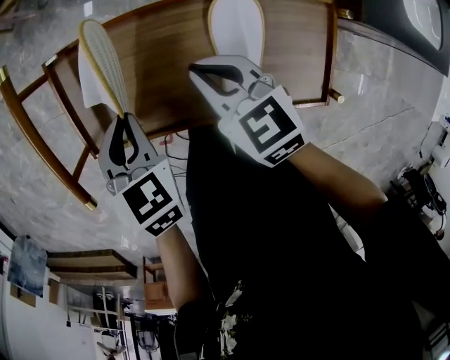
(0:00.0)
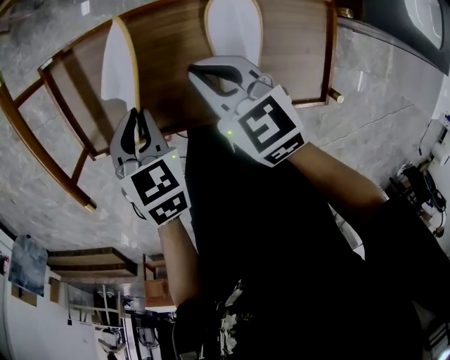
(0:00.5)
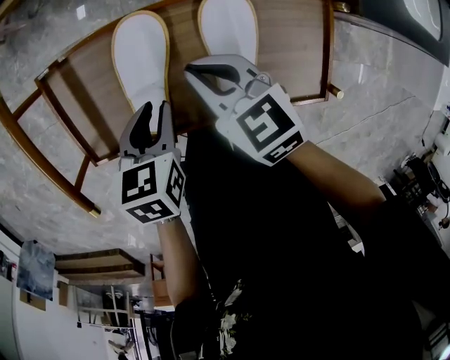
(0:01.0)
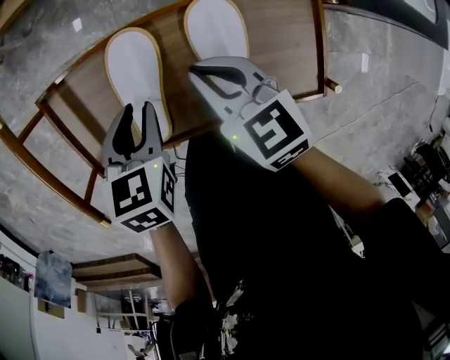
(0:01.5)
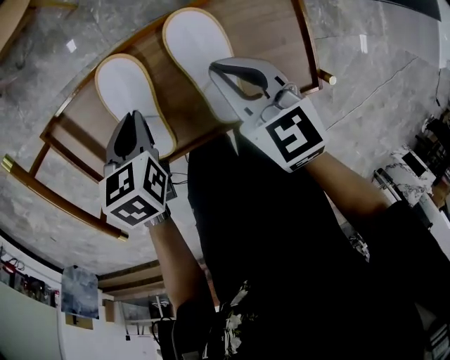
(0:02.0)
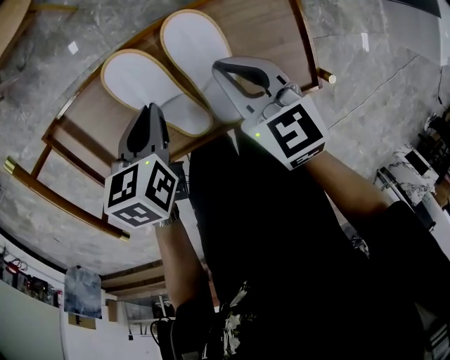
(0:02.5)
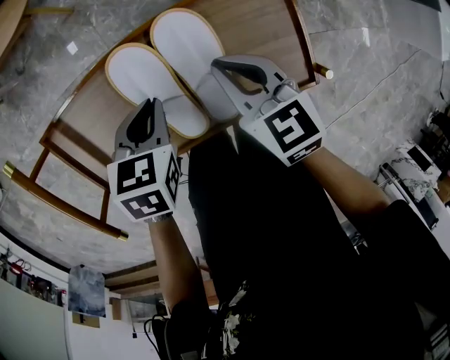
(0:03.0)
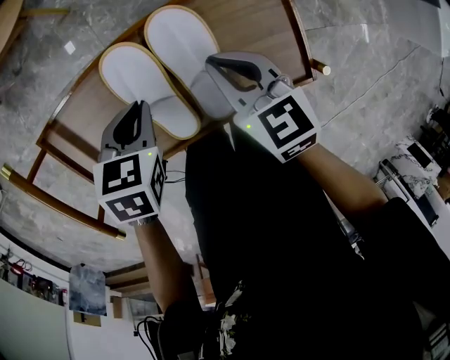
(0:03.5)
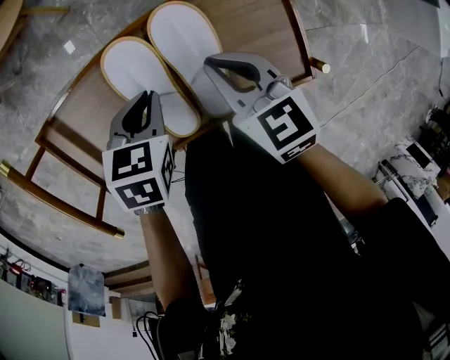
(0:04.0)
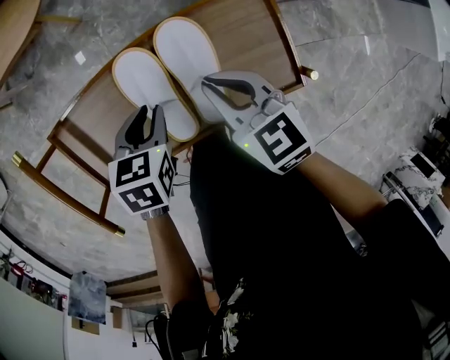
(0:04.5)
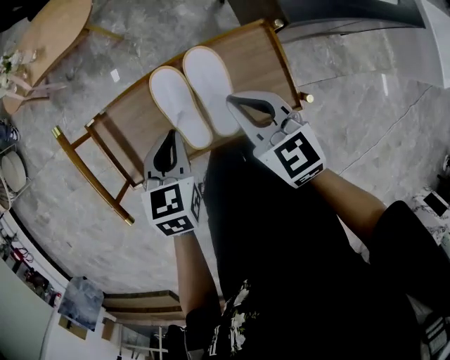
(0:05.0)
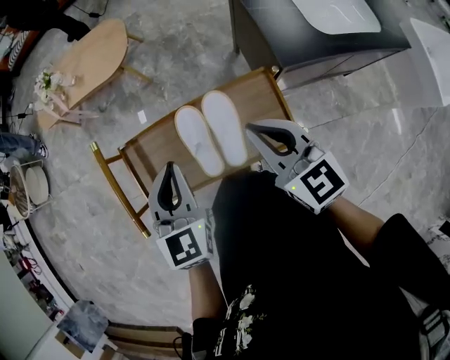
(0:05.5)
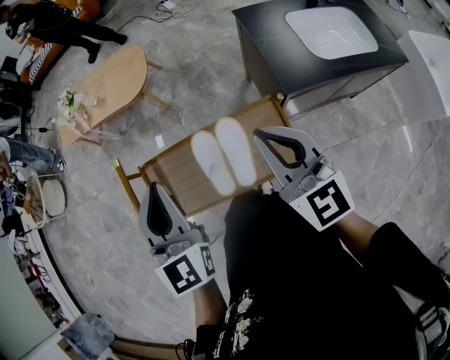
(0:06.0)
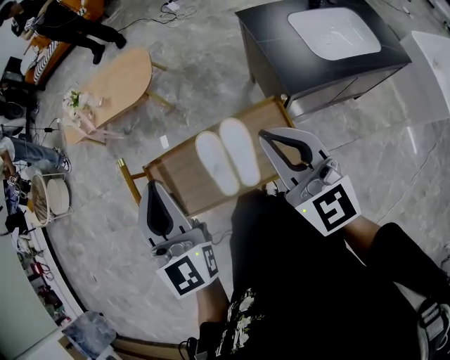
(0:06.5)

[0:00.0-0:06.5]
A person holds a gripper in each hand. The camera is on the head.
0:00.0 to 0:02.0: The left gripper changes place by about 10 cm, turns by roughly 20 degrees, and opens, then closes once more. The right gripper moves roughly 10 cm.
0:02.0 to 0:04.5: The left gripper shifts approximately 5 cm to the right.
0:04.5 to 0:06.5: The two grippers go approximately 35 cm upward. The left gripper tilts its fingers approximately 60 degrees upward, and closes its fingers. Meanwhile the right gripper angles its fingers upward, by about 30 degrees.

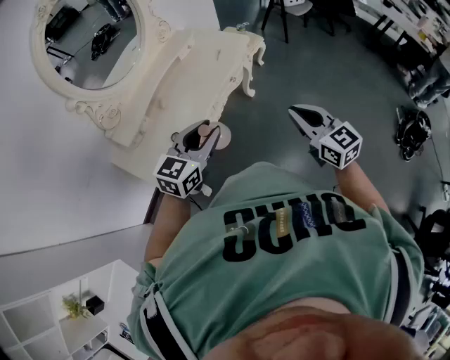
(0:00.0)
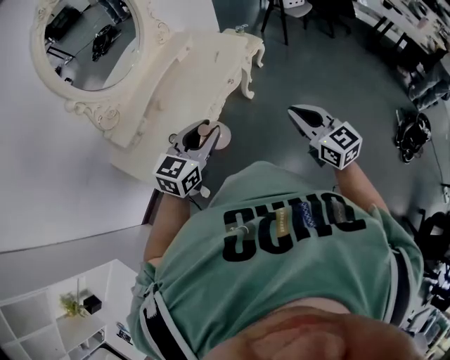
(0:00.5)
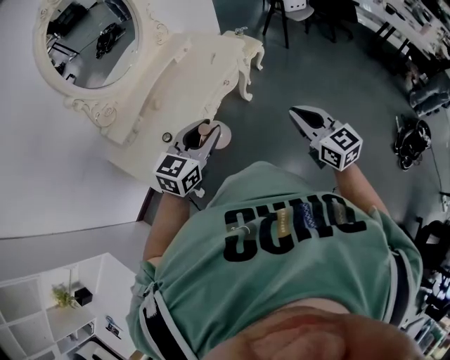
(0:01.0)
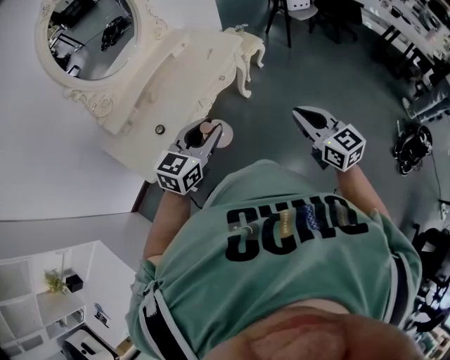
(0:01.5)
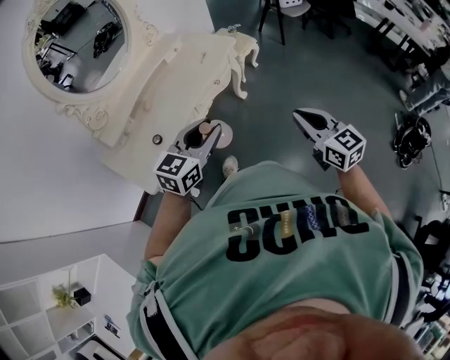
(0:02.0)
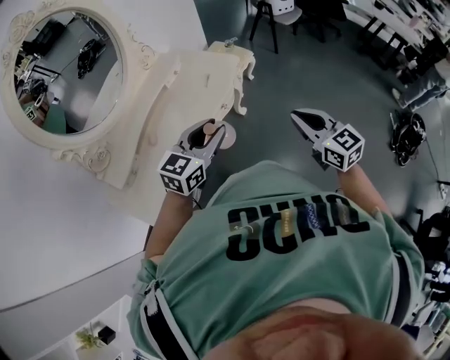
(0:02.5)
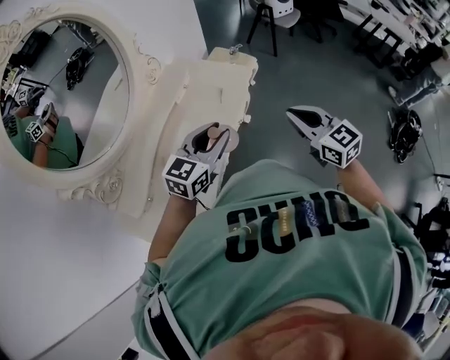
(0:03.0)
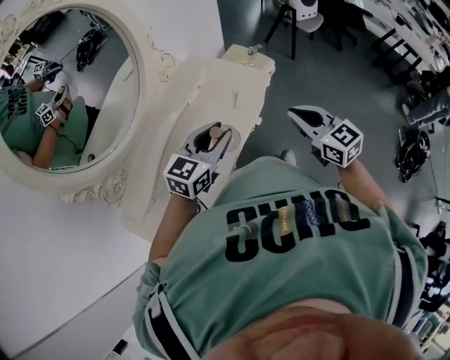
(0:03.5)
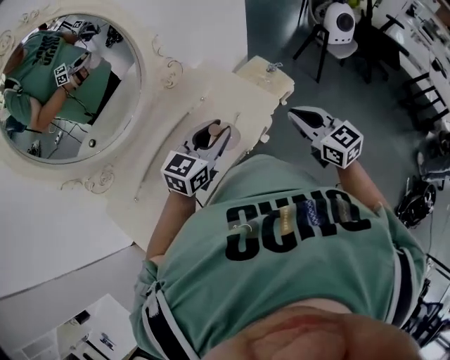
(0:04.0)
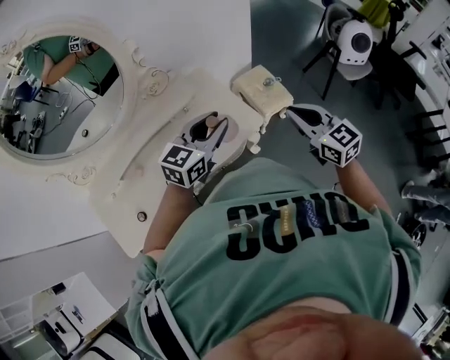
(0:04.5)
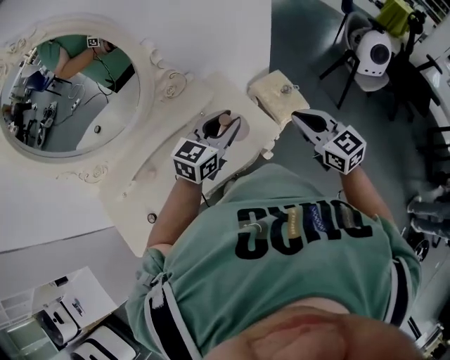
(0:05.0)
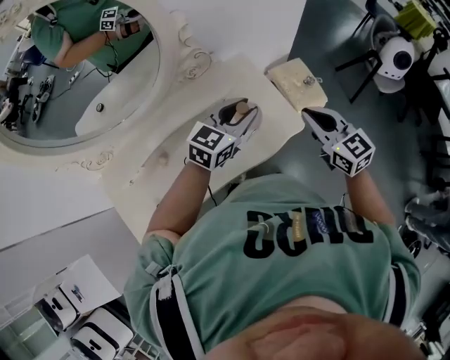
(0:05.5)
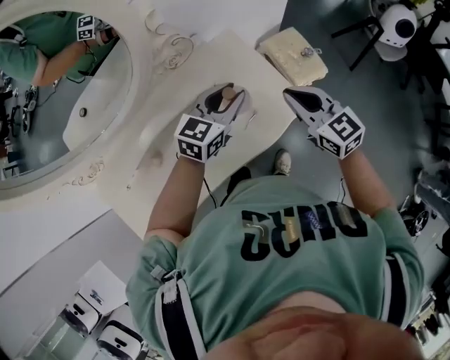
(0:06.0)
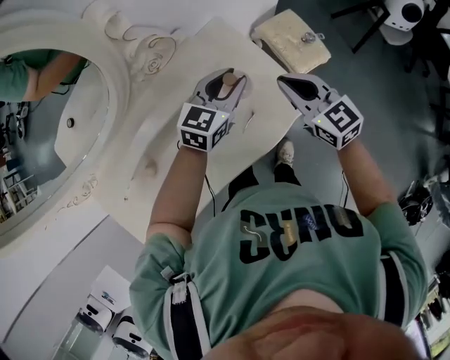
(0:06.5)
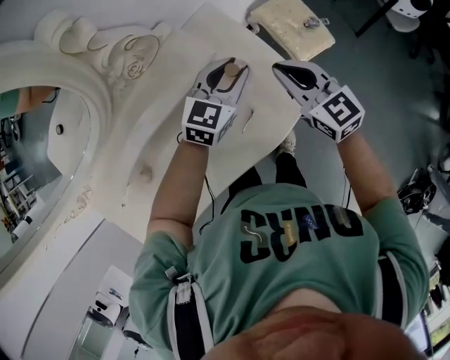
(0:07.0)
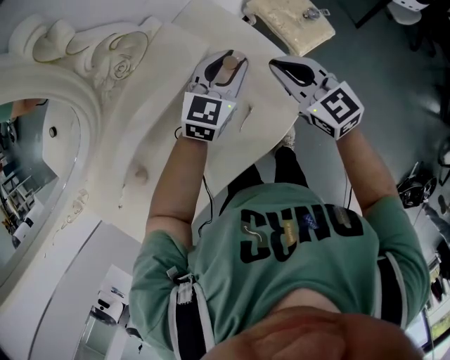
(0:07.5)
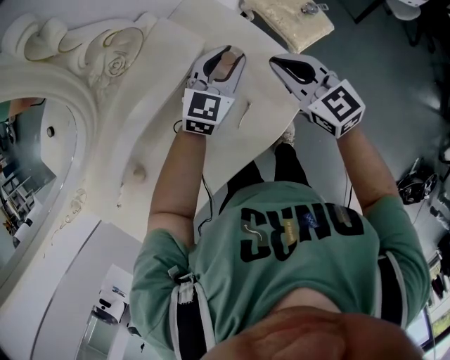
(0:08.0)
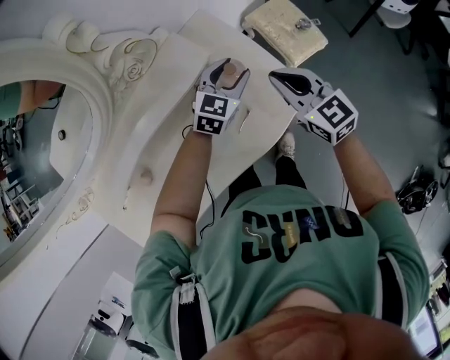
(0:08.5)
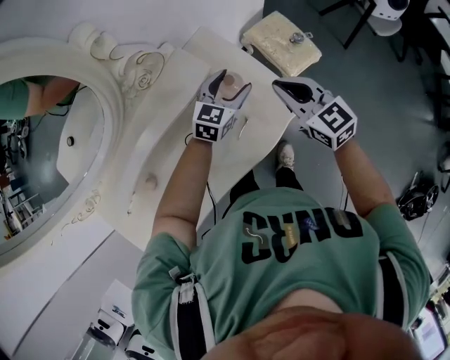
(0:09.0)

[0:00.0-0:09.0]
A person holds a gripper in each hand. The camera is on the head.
0:00.0 to 0:02.0: The grippers both shift to the right by approximately 10 cm.
0:02.0 to 0:04.5: The pair of grippers is taken about 60 cm. The right gripper turns by some 20 degrees.
0:04.5 to 0:07.0: The right gripper goes some 35 cm downward, forward and to the left. The left gripper shifts about 35 cm downward and forward.
0:07.0 to 0:09.0: The right gripper changes place by some 5 cm. Meanwhile the left gripper opens up.

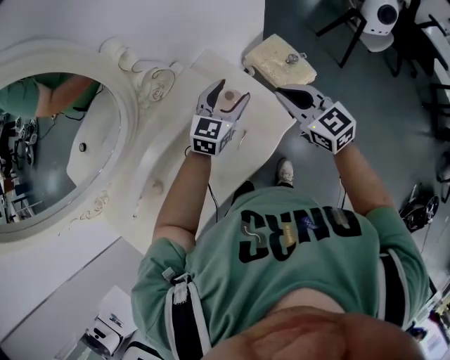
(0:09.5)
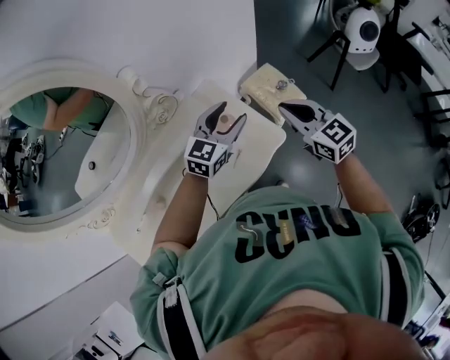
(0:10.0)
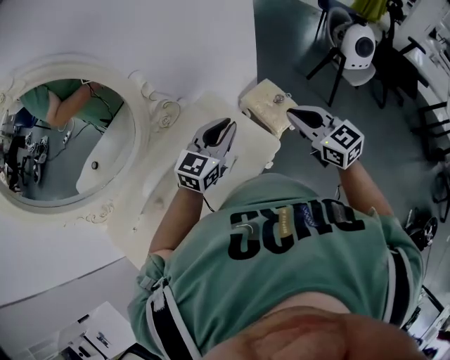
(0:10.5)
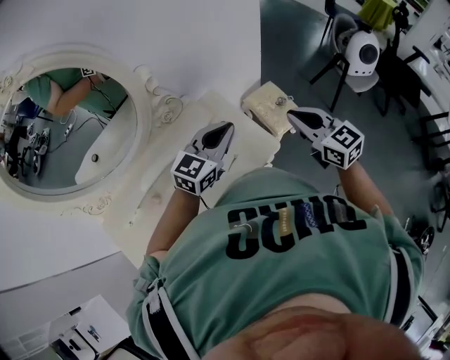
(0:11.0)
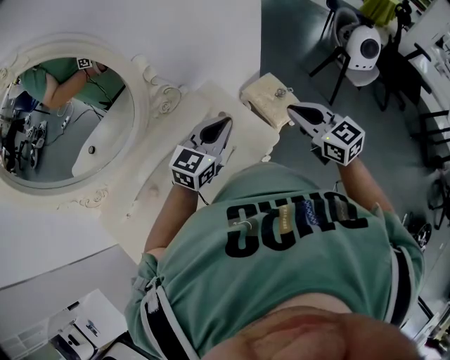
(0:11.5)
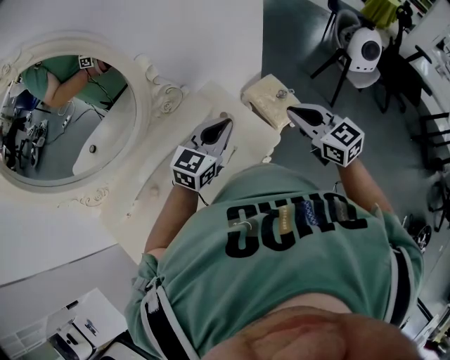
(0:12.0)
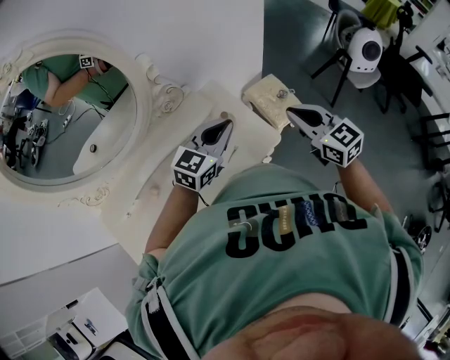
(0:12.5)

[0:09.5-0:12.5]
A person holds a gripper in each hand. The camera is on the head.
0:09.5 to 0:11.0: The left gripper goes about 20 cm upward and backward, and closes its fingers. Meanwhile the right gripper heads upward, to the right and backward, covering approximately 15 cm.
0:11.0 to 0:12.5: The grippers move only a little.

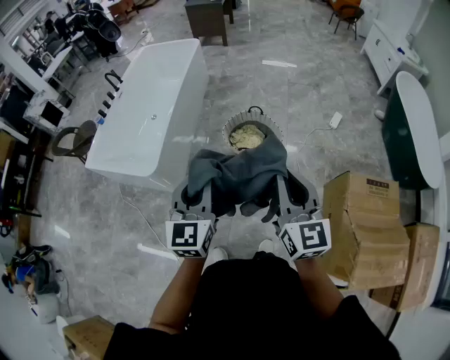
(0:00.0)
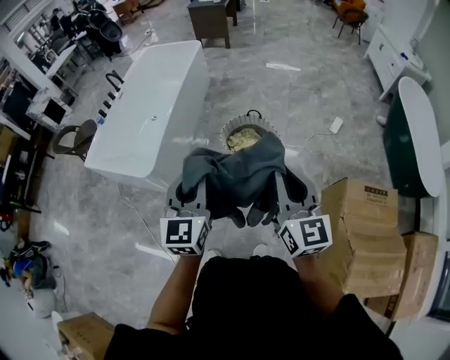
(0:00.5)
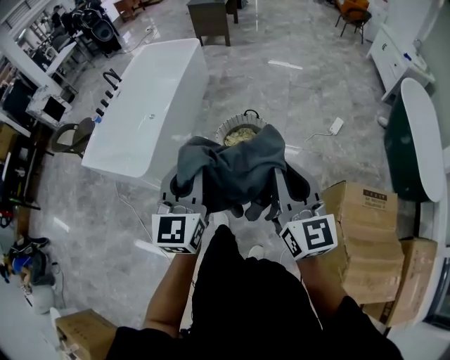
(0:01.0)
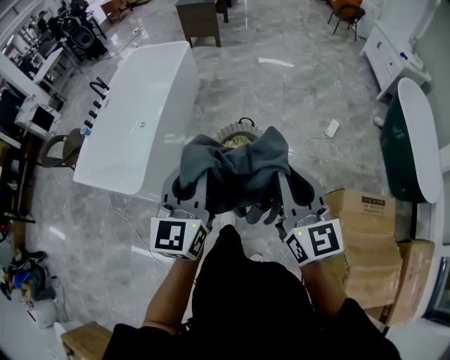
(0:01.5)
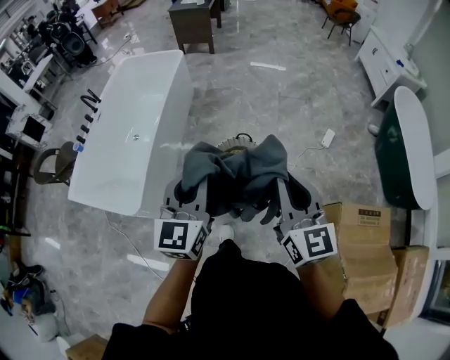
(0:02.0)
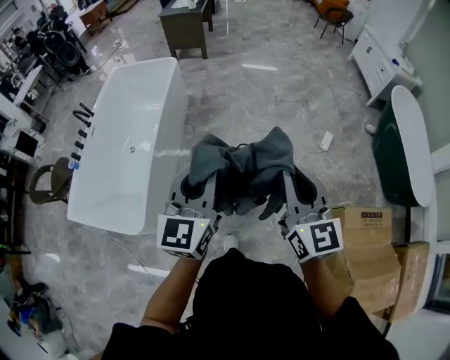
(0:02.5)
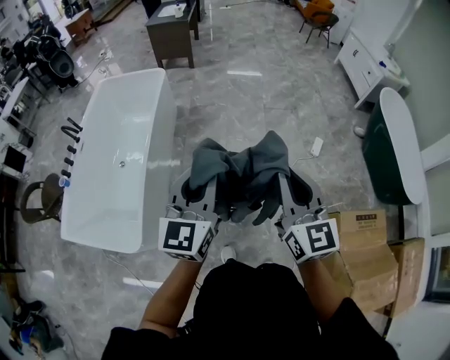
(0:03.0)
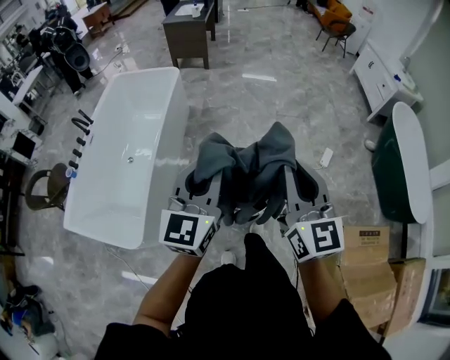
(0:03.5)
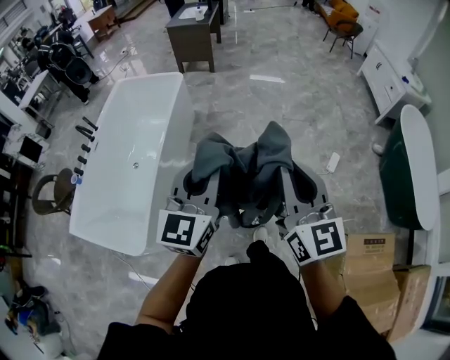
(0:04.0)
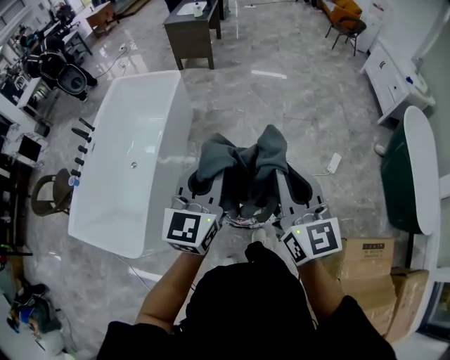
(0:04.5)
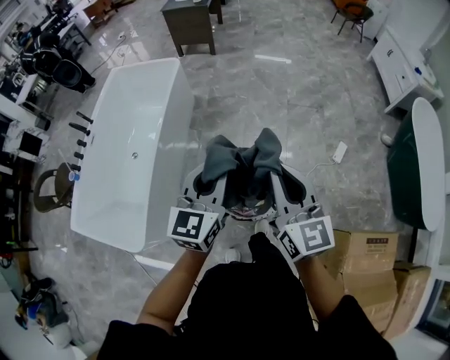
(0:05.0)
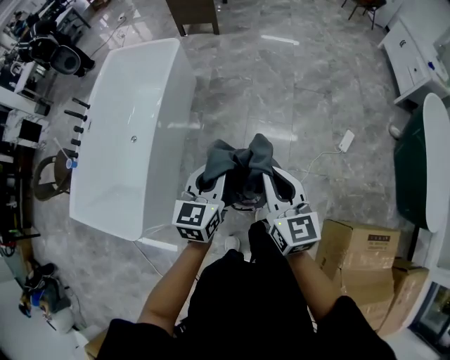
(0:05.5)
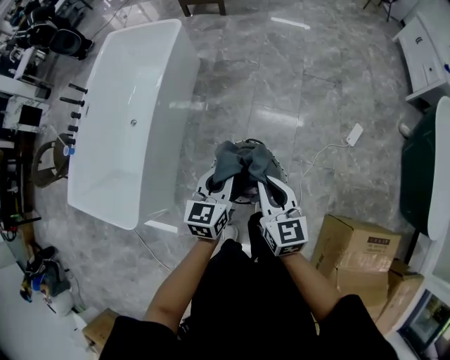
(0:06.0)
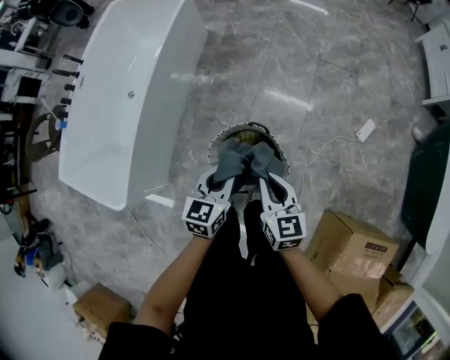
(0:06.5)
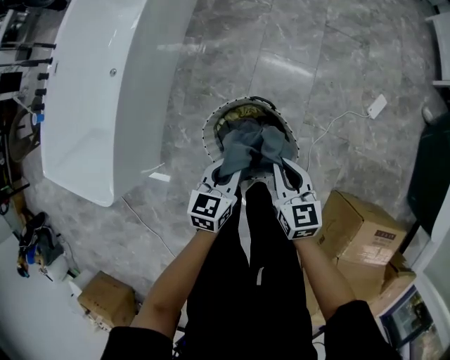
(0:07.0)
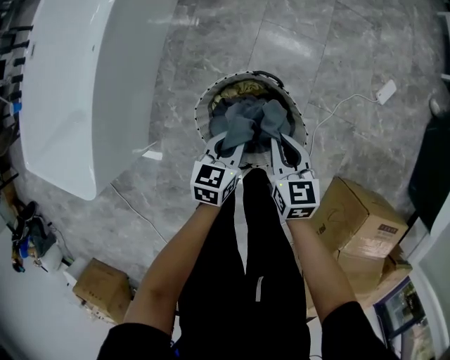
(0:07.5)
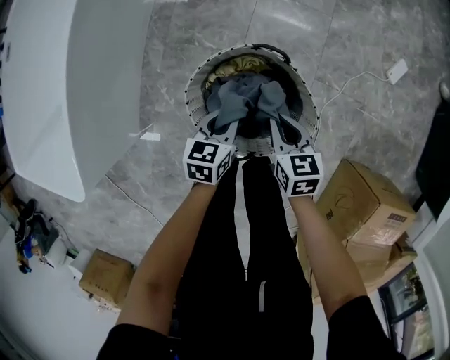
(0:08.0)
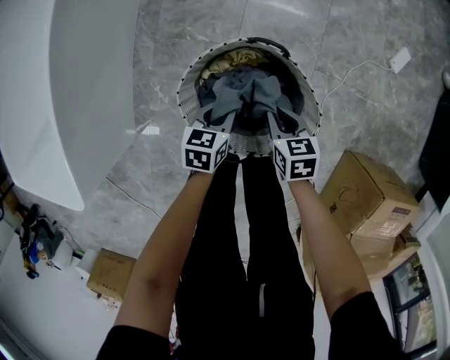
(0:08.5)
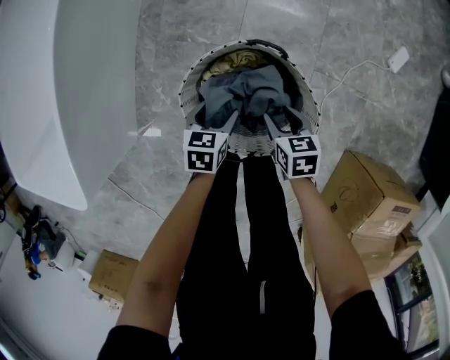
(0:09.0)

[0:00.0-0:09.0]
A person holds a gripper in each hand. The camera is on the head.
0:00.0 to 0:02.0: The grippers both shift forward by some 25 cm.
0:02.0 to 0:04.5: The two grippers go about 30 cm forward.
0:04.5 to 0:07.0: The grippers both shift downward by some 50 cm. The right gripper tips its fingers downward by about 30 degrees. Meanwhile the left gripper points its fingers about 30 degrees further downward.
0:07.0 to 0:09.0: The two grippers go some 35 cm downward. The right gripper swivels some 30 degrees, and opens its fingers; the left gripper swivels some 20 degrees, and opens up.
